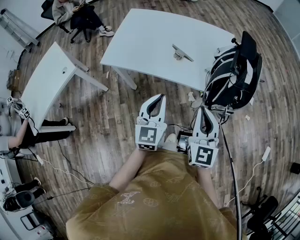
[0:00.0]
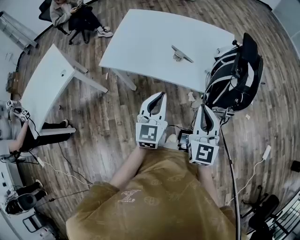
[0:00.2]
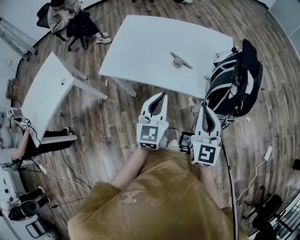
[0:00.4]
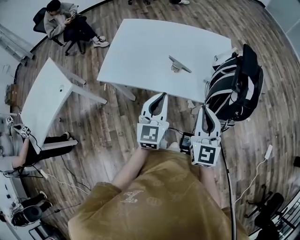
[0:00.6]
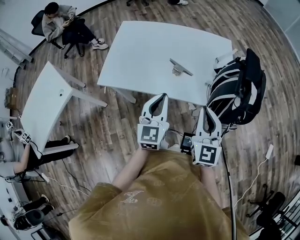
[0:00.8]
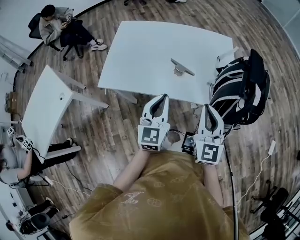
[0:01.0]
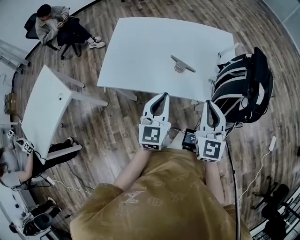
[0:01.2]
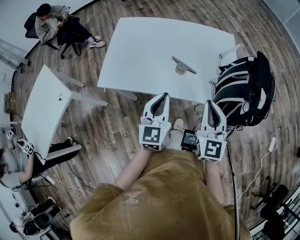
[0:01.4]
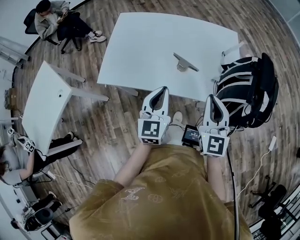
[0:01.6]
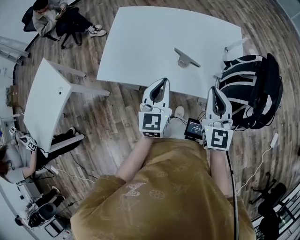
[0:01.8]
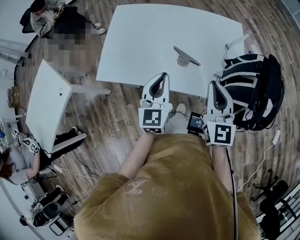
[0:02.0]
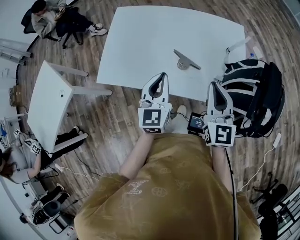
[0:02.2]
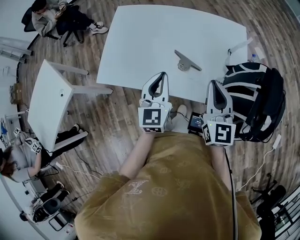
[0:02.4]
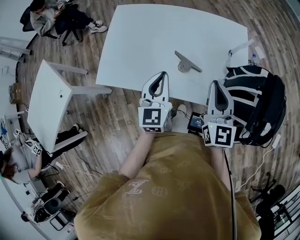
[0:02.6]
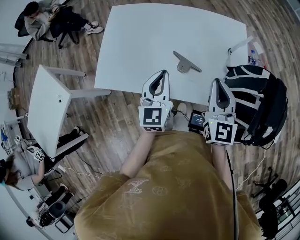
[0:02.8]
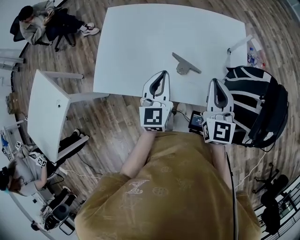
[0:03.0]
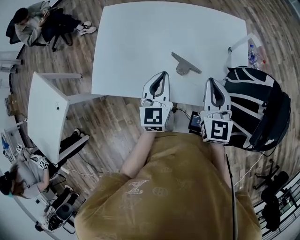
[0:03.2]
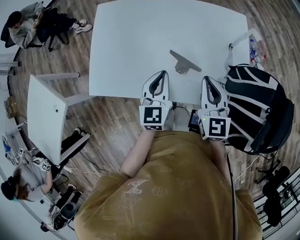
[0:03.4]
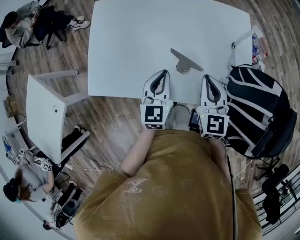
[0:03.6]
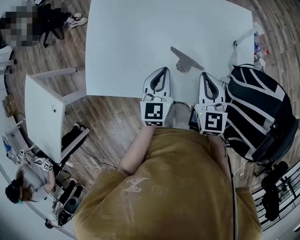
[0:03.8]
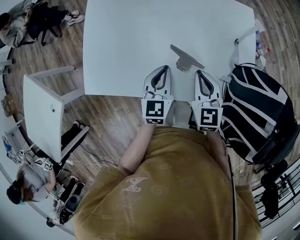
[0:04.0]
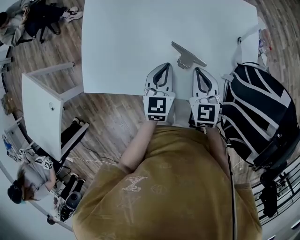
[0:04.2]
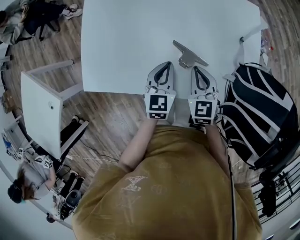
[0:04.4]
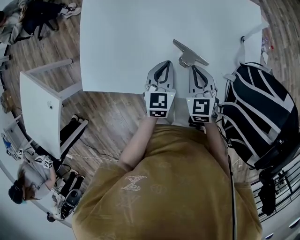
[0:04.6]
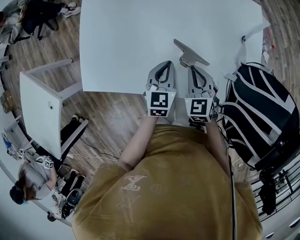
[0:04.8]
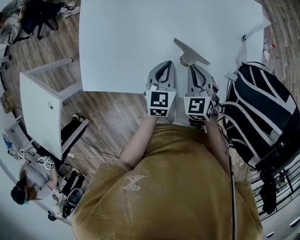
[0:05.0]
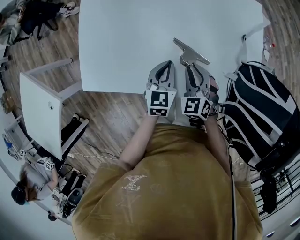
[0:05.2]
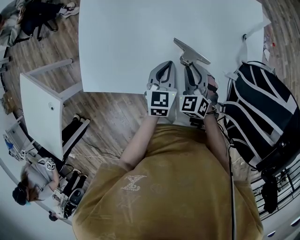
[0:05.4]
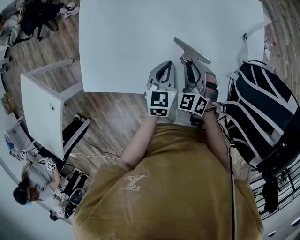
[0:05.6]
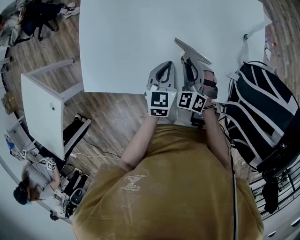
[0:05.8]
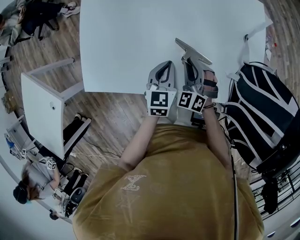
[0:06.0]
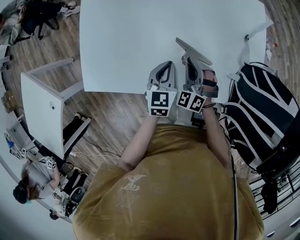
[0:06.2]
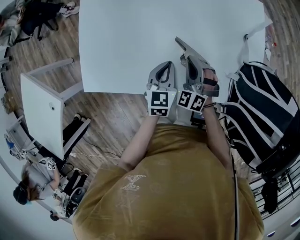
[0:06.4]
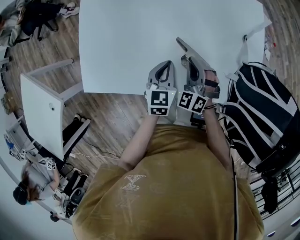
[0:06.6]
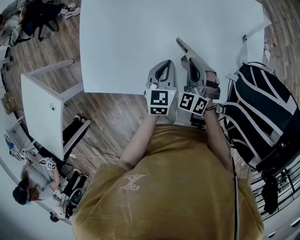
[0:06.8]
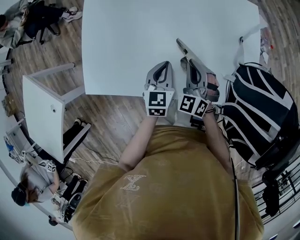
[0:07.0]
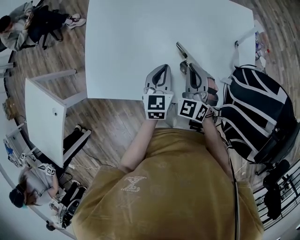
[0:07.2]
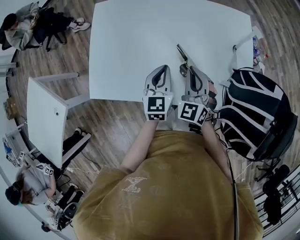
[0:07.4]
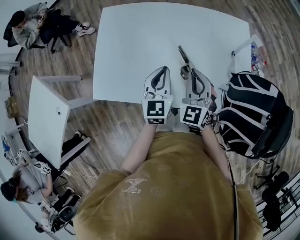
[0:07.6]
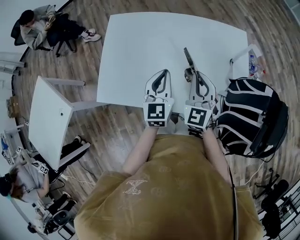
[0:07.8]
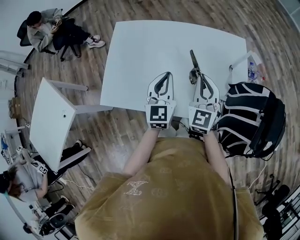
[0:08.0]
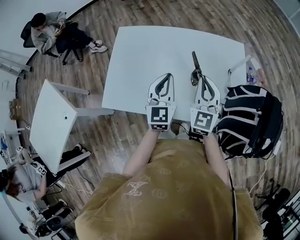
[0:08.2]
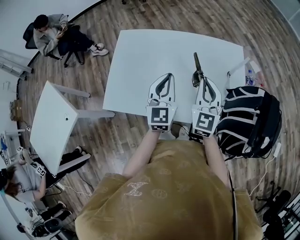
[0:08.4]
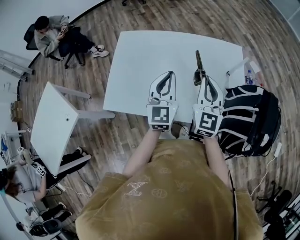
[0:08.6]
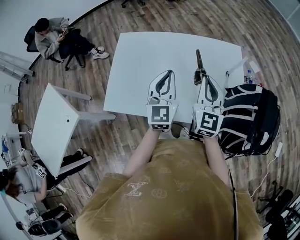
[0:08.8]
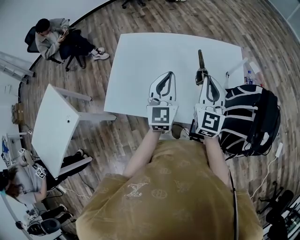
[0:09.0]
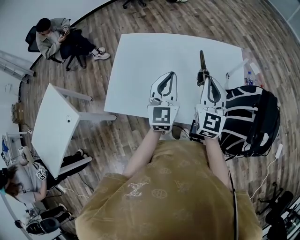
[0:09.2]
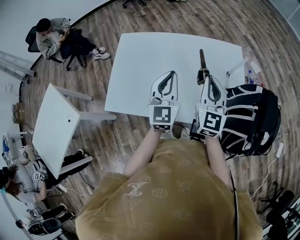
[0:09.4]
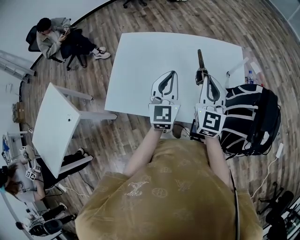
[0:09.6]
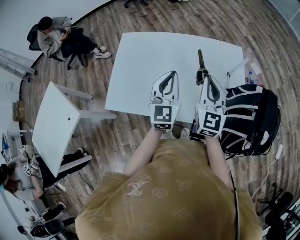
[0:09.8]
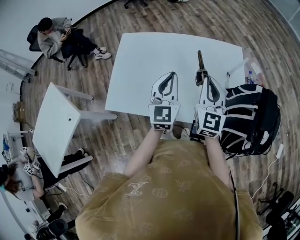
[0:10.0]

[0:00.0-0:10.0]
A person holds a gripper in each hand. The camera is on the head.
0:00.0 to 0:01.4: The two grippers go roughly 15 cm forward.
0:01.4 to 0:02.8: The grippers both shift forward by about 15 cm.
0:02.8 to 0:04.2: The right gripper is displaced downward and to the left by roughly 20 cm, and turns by about 20 degrees. The left gripper heads downward and forward, covering approximately 15 cm.
0:04.2 to 0:05.8: The left gripper moves downward, approximately 5 cm. Meanwhile the right gripper shifts roughly 10 cm downward, and turns by approximately 40 degrees.
0:05.8 to 0:07.2: The right gripper moves upward, approximately 10 cm.
0:07.2 to 0:08.6: The grippers both shift upward by some 20 cm. The right gripper changes its angle by roughly 40 degrees, while the left gripper turns by some 30 degrees.
0:08.6 to 0:10.0: The grippers move only a little.

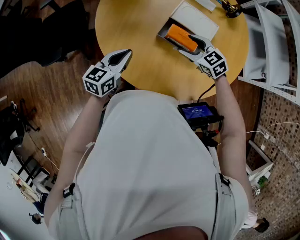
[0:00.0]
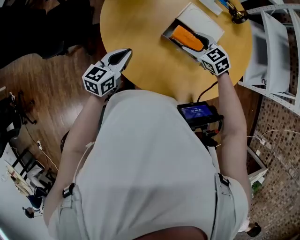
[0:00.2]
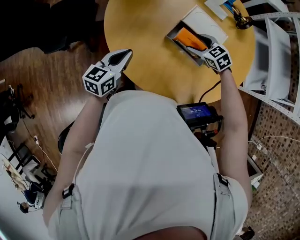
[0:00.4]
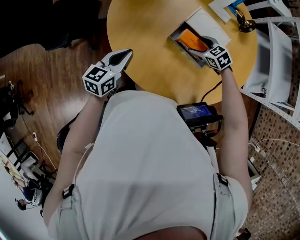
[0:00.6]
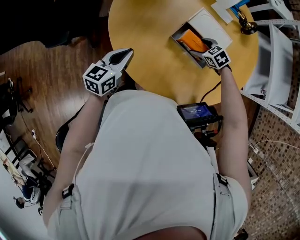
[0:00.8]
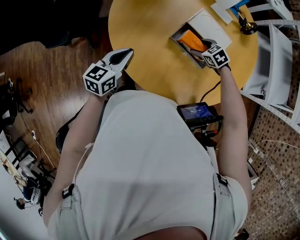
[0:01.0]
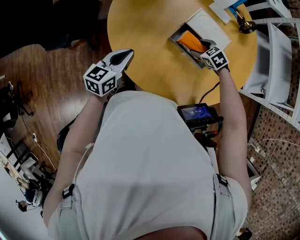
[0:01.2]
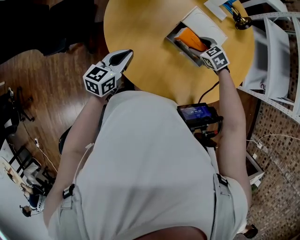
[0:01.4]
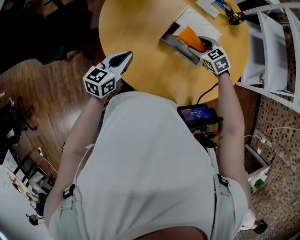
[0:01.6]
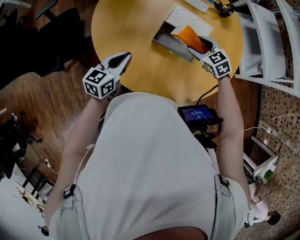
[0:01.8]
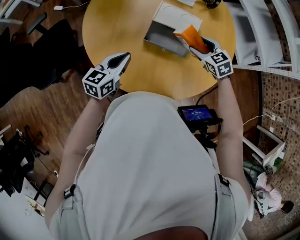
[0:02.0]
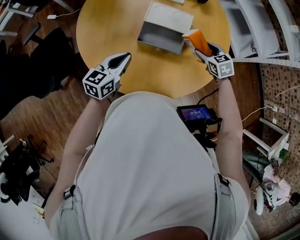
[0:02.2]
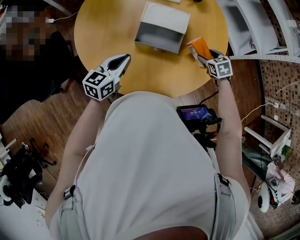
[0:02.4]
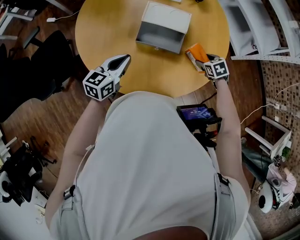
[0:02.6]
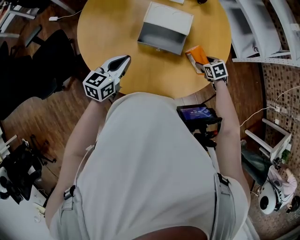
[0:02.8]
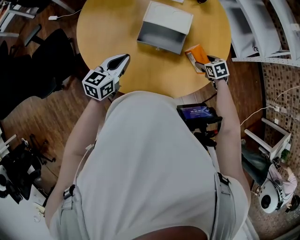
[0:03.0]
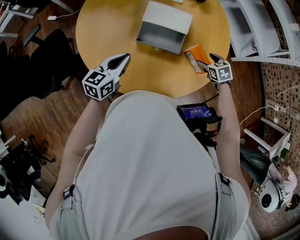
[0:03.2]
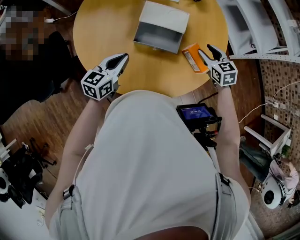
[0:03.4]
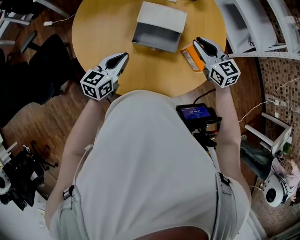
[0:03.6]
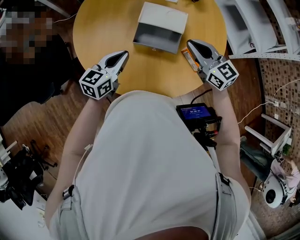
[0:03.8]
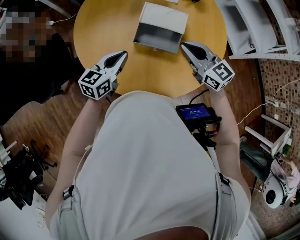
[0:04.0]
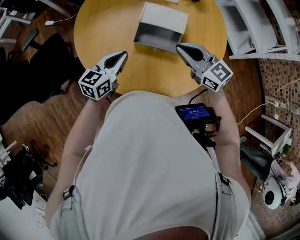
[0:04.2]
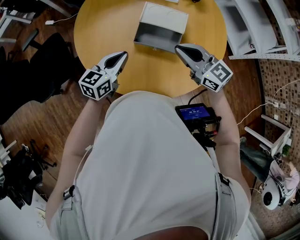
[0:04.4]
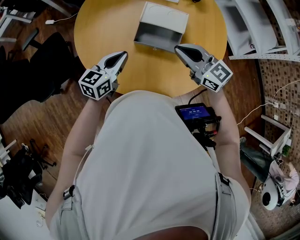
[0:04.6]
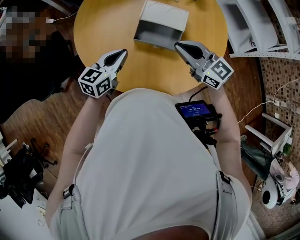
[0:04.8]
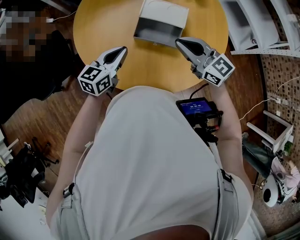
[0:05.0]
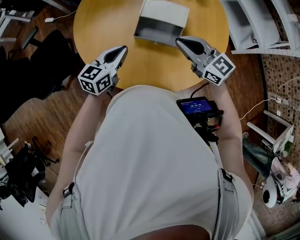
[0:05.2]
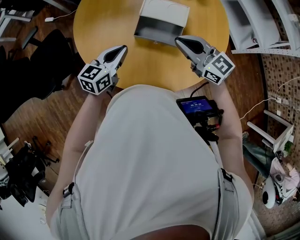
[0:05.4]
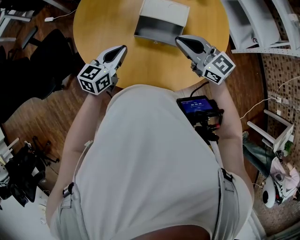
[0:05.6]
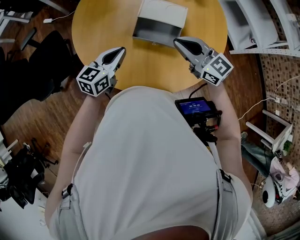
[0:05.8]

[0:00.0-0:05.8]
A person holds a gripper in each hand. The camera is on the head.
0:00.0 to 0:01.4: The right gripper shifts approximately 10 cm downward, forward and to the right.
0:01.4 to 0:02.8: The right gripper shifts by some 25 cm, and turns by some 40 degrees; the left gripper moves about 10 cm.
0:02.8 to 0:04.4: The right gripper moves upward and to the left, some 30 cm, tips its fingers upward by about 60 degrees, and closes up.
0:04.4 to 0:05.8: Both grippers stay put.

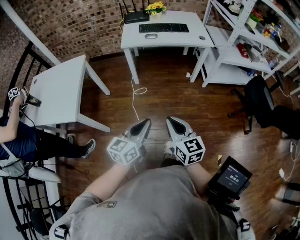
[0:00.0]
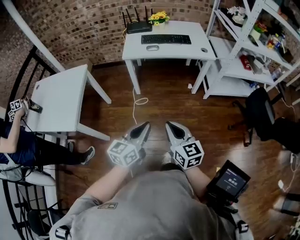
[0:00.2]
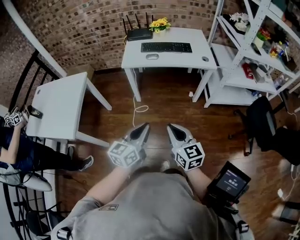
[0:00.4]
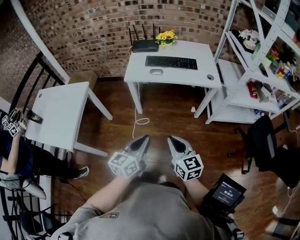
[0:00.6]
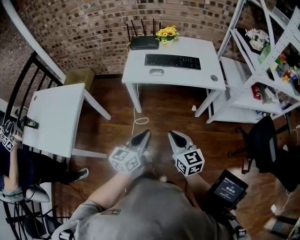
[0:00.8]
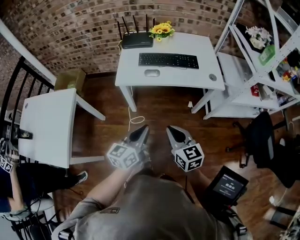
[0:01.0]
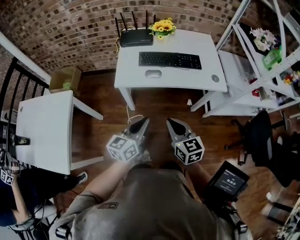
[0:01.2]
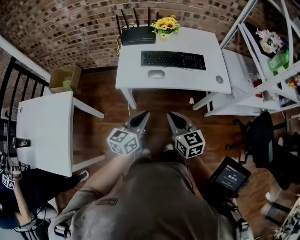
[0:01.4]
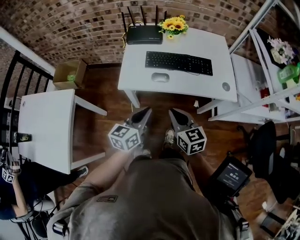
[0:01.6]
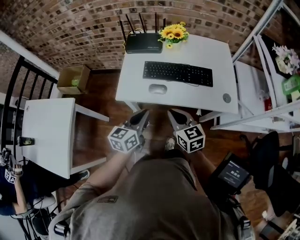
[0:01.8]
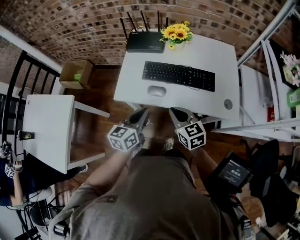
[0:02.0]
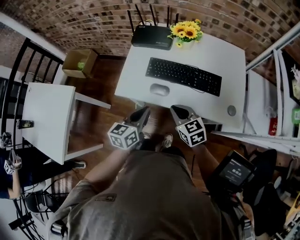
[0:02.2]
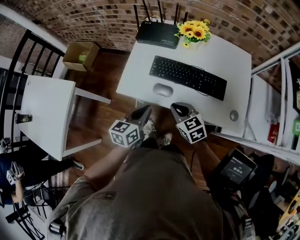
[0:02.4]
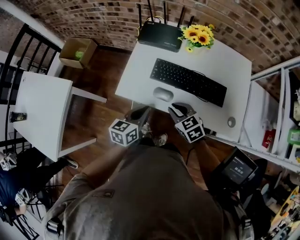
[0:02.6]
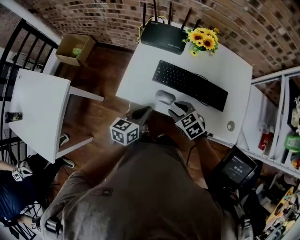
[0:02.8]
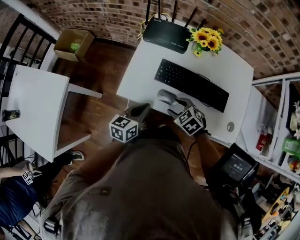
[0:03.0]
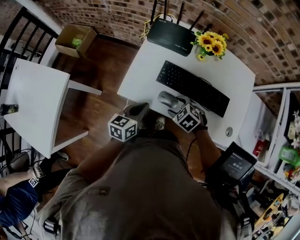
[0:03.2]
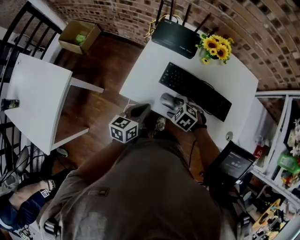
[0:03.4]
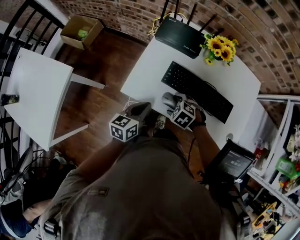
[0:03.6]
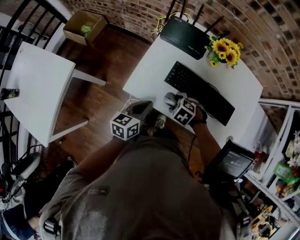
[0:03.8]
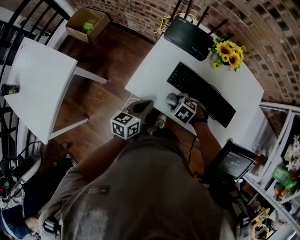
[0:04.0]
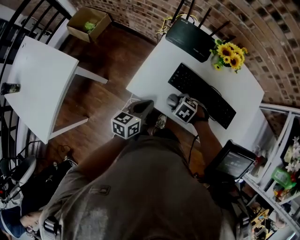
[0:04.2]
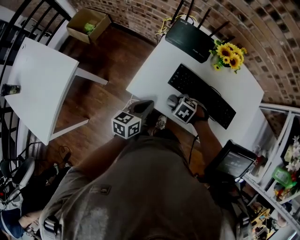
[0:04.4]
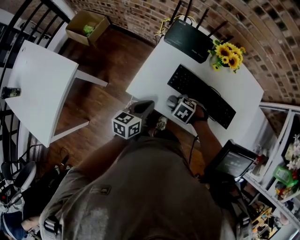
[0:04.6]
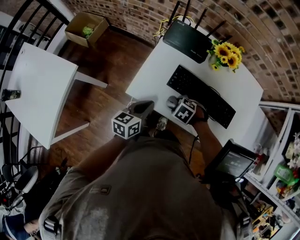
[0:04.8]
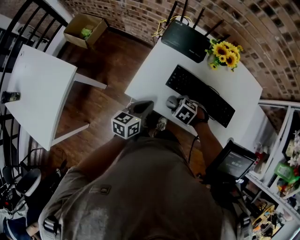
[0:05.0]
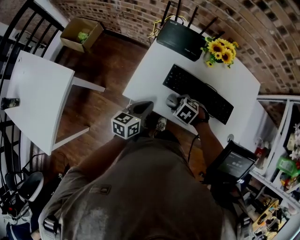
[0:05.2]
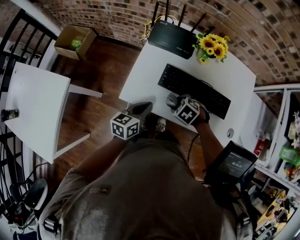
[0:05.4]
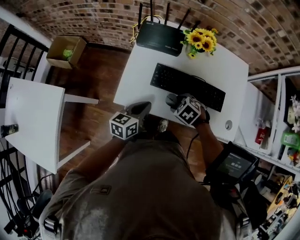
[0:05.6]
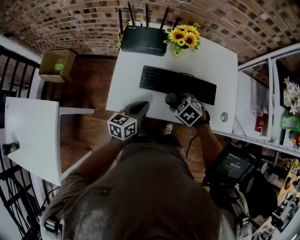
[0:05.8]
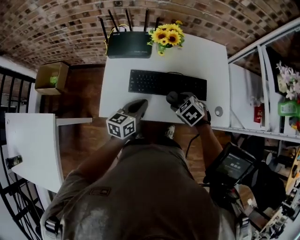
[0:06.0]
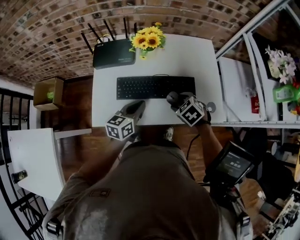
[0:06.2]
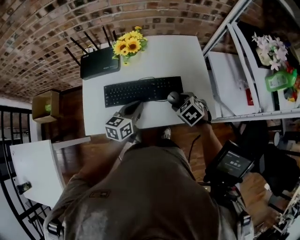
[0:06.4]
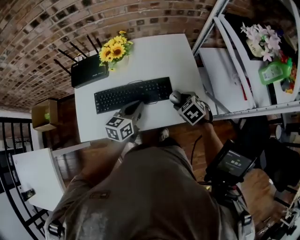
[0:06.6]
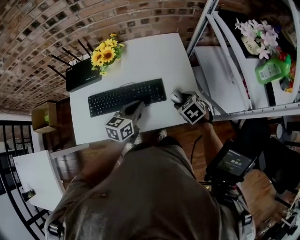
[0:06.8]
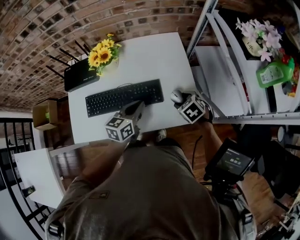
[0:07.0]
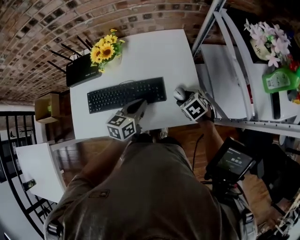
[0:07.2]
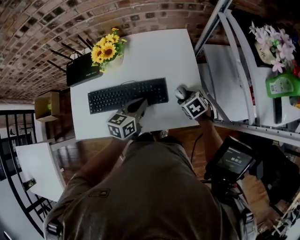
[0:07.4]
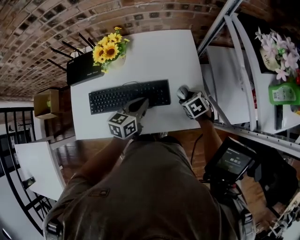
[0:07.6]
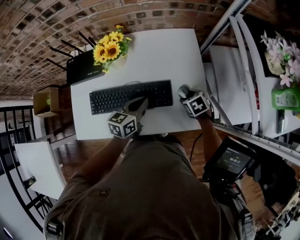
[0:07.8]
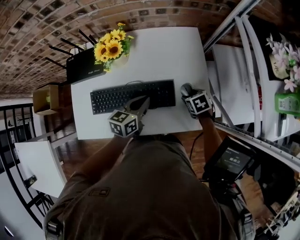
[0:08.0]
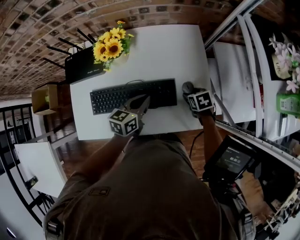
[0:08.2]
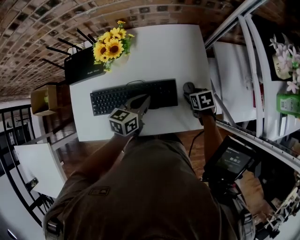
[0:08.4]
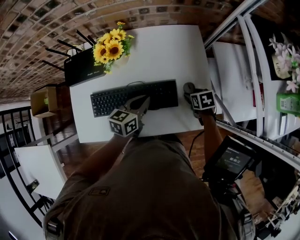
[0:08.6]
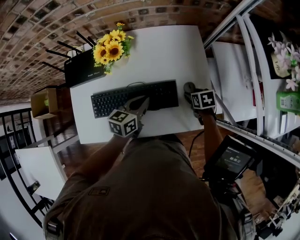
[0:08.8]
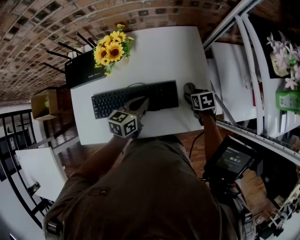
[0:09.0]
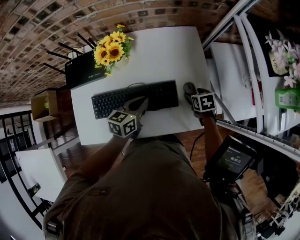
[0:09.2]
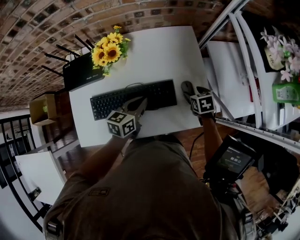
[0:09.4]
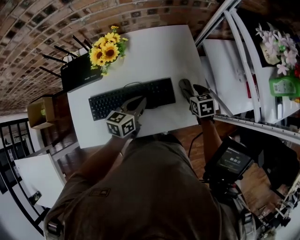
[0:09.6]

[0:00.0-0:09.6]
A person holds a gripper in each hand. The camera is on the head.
0:00.0 to 0:01.6: Both grippers are carried forward, some 50 cm.
0:01.6 to 0:03.2: Both grippers move forward and downward, approximately 20 cm. The right gripper tilts its fingers about 40 degrees downward, and opens its fingers.
0:03.2 to 0:04.8: The right gripper changes its angle by approximately 20 degrees.
0:04.8 to 0:06.4: The right gripper ends up roughly 30 cm from where it was, and twists about 40 degrees clockwise, seen from behind; the left gripper shifts by roughly 25 cm, and changes its angle by approximately 30 degrees.
0:06.4 to 0:08.0: The left gripper is displaced to the right and forward by approximately 15 cm, while the right gripper moves to the right, forward and downward, roughly 20 cm, and turns by approximately 20 degrees.
0:08.0 to 0:09.6: The right gripper changes its angle by approximately 20 degrees.
